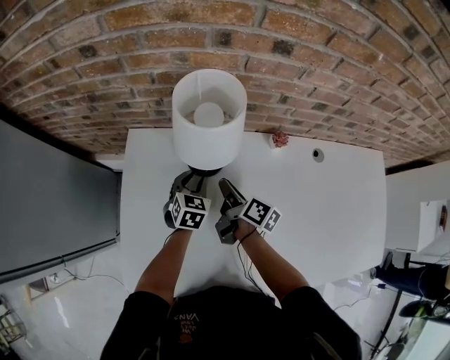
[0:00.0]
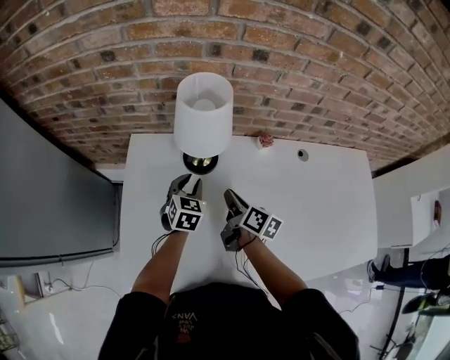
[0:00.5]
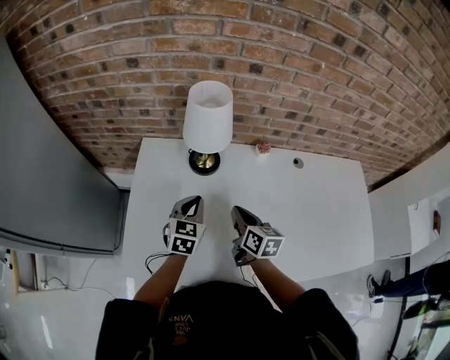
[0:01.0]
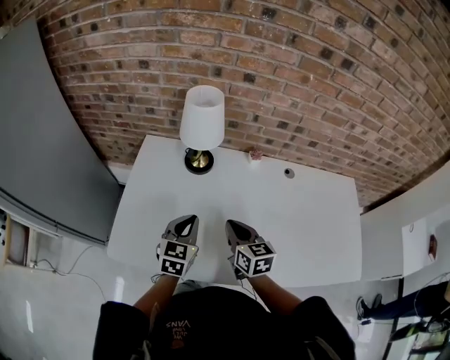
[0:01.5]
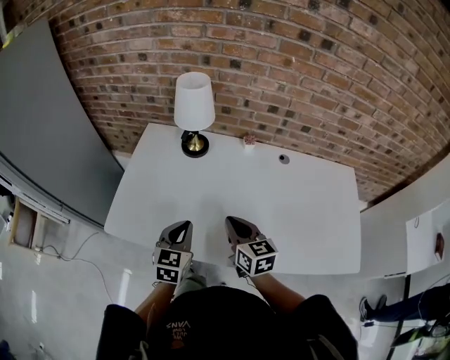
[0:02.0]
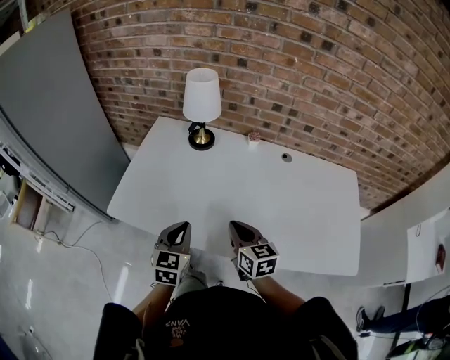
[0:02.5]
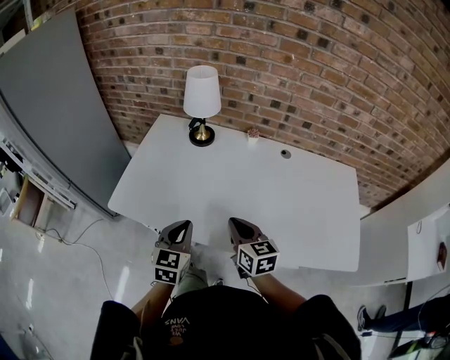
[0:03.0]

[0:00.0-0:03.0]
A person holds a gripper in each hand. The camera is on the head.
0:00.0 to 0:01.5: The left gripper ends up roughly 30 cm from where it was, and closes.
0:01.5 to 0:03.0: The left gripper ends up about 20 cm from where it was.

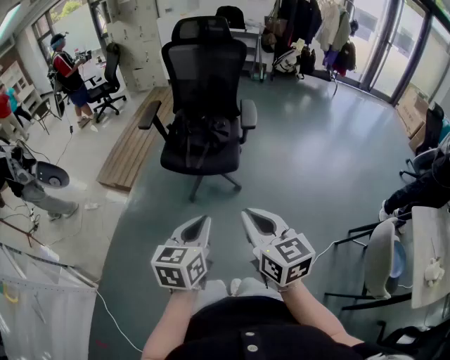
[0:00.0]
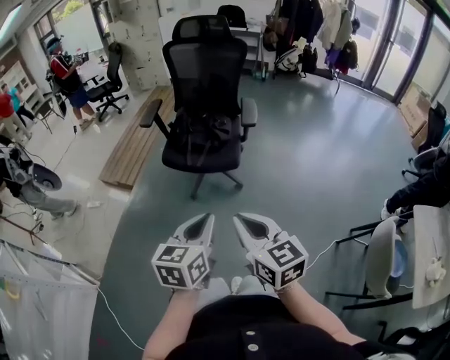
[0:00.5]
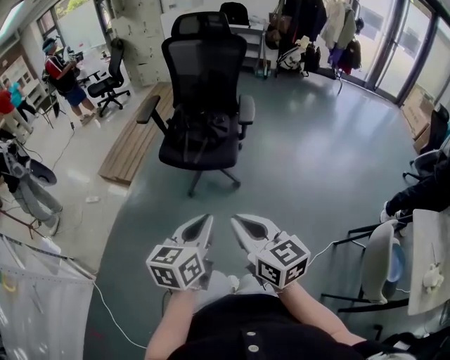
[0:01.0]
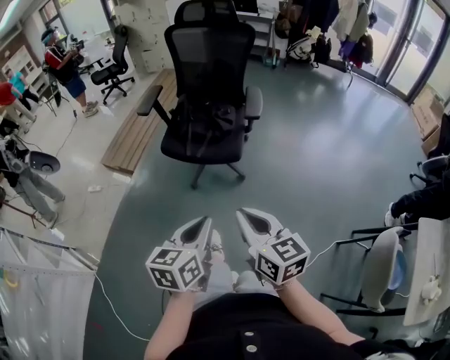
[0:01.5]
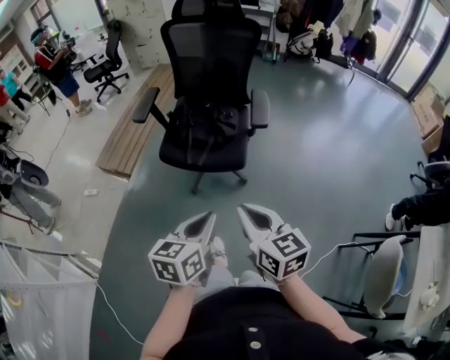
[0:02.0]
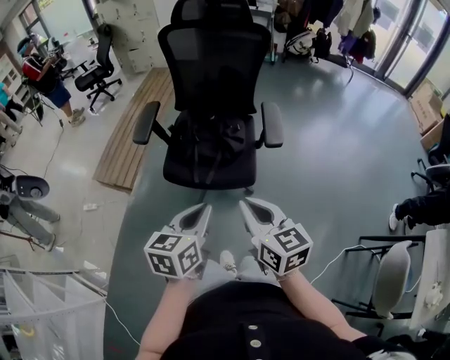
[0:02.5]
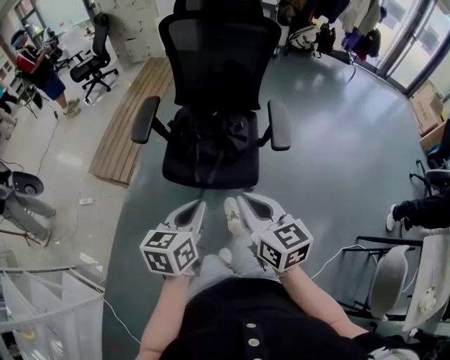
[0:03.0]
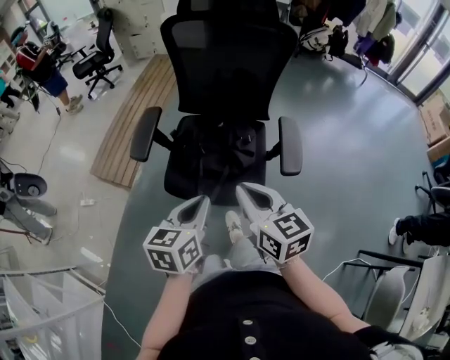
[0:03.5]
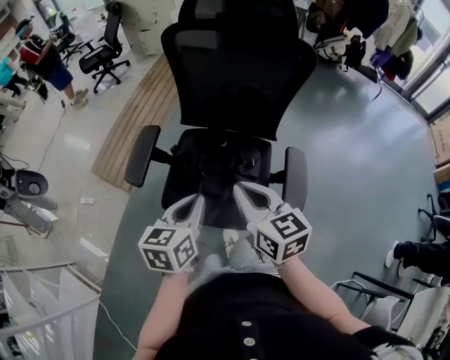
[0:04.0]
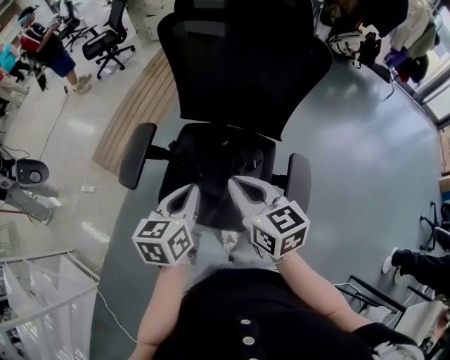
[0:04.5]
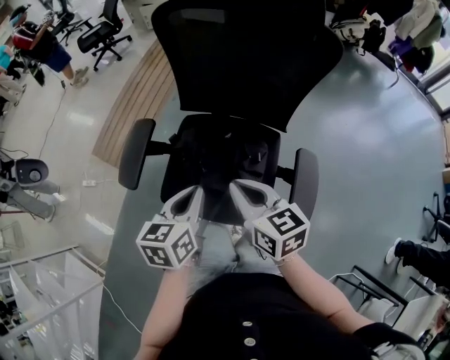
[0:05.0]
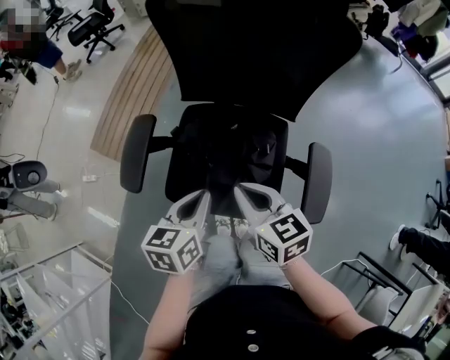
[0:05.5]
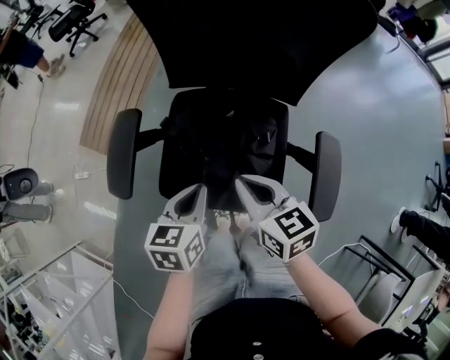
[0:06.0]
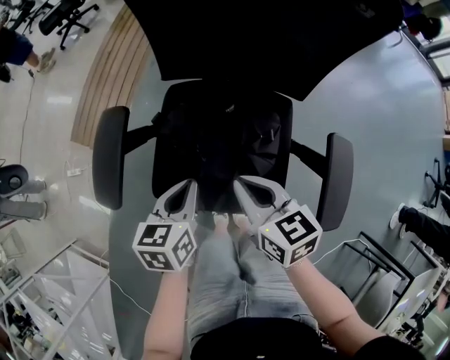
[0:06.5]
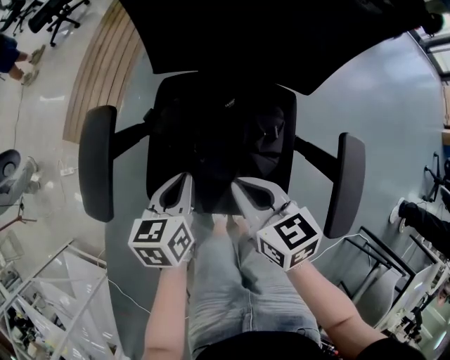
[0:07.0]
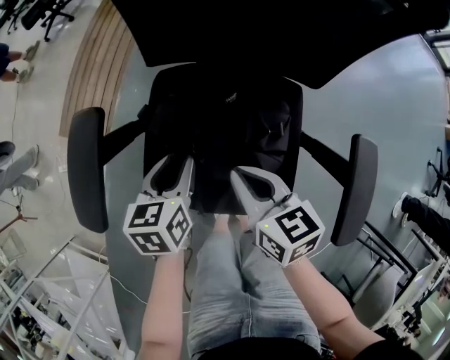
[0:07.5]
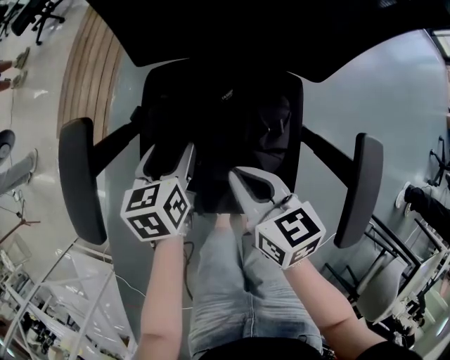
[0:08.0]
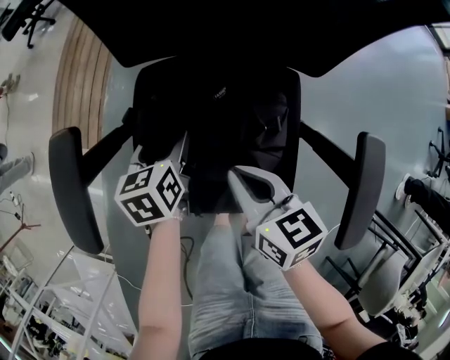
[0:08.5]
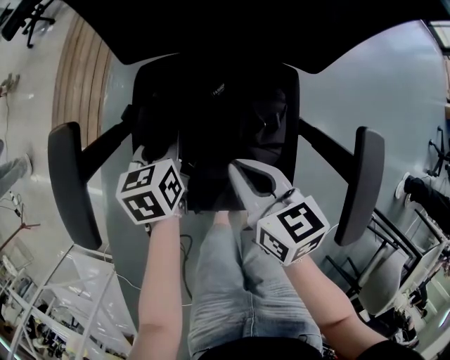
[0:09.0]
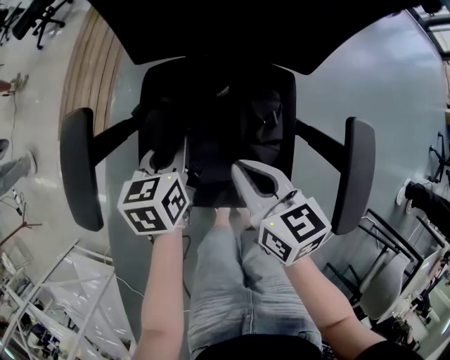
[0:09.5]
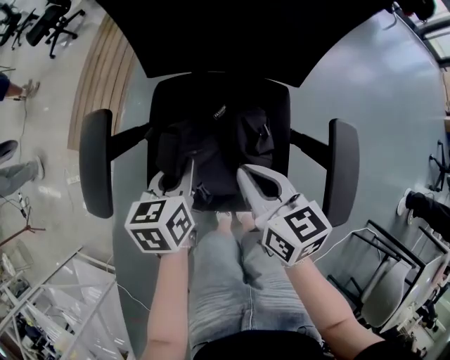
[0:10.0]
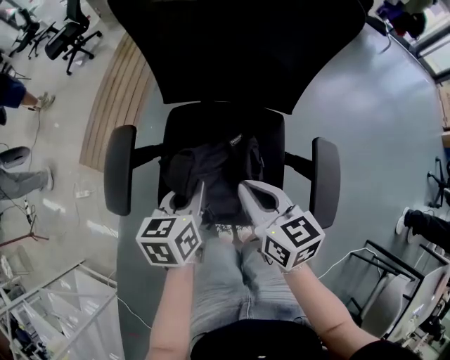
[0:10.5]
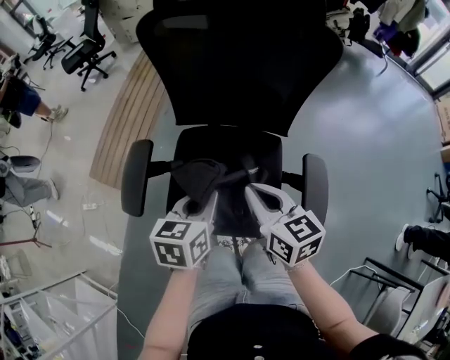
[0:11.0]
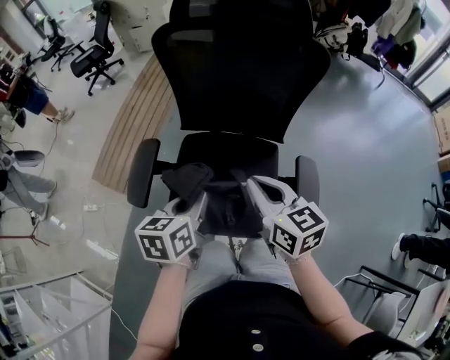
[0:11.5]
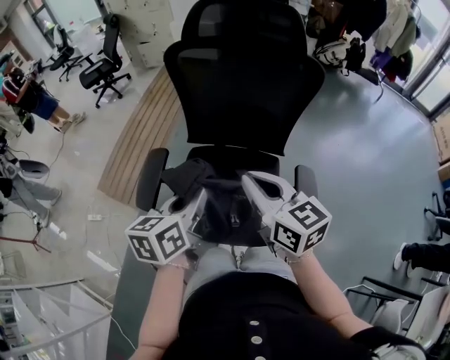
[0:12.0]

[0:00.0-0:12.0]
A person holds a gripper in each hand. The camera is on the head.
0:00.0 to 0:02.0: The right gripper travels forward and downward by some 15 cm. The left gripper shifts roughly 15 cm forward.
0:02.0 to 0:04.0: The pair of grippers is taken forward, approximately 40 cm.
0:04.0 to 0:06.0: The grippers both shift downward and forward by about 15 cm.
0:06.0 to 0:08.0: Both grippers travel together downward and forward, some 15 cm. The left gripper opens up.
0:08.0 to 0:10.0: The right gripper moves upward, some 5 cm. Meanwhile the left gripper heads upward and backward, covering about 10 cm, and closes its fingers.
0:10.0 to 0:12.0: Both grippers travel together upward, roughly 25 cm. The right gripper changes its angle by roughly 20 degrees.

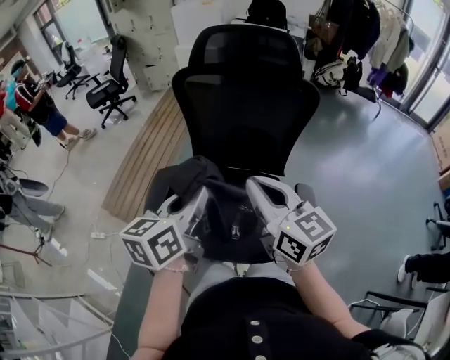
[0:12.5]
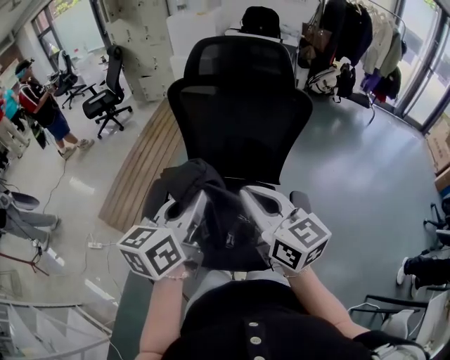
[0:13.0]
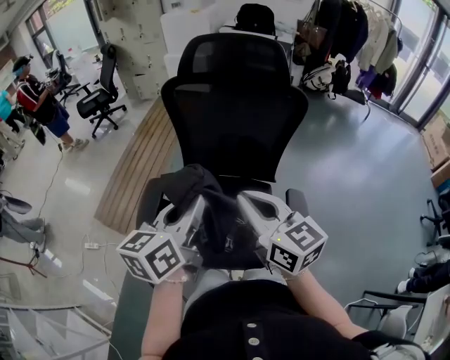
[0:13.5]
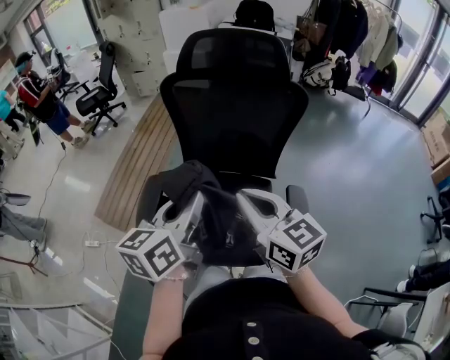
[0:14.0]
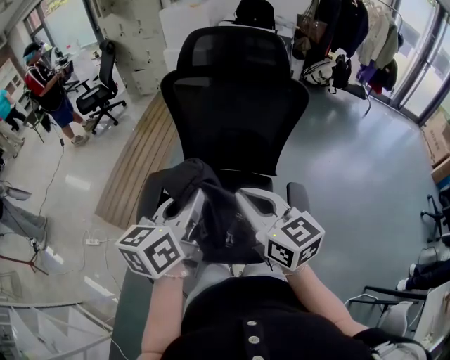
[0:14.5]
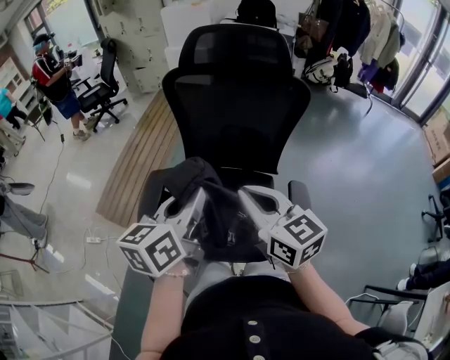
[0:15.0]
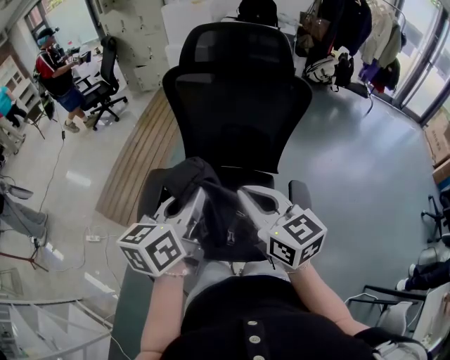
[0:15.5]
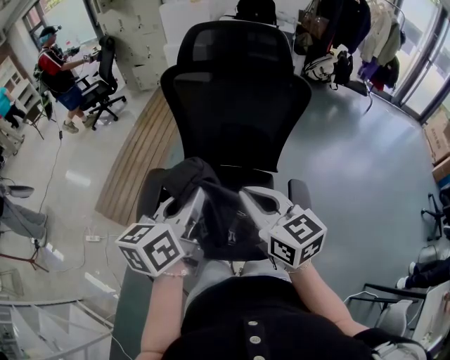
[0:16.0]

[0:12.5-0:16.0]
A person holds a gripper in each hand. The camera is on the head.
0:12.5 to 0:16.0: There are only small adjustments of the grippers.

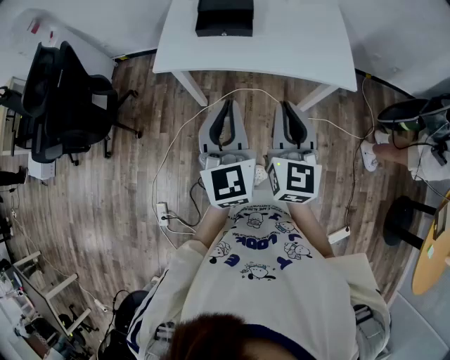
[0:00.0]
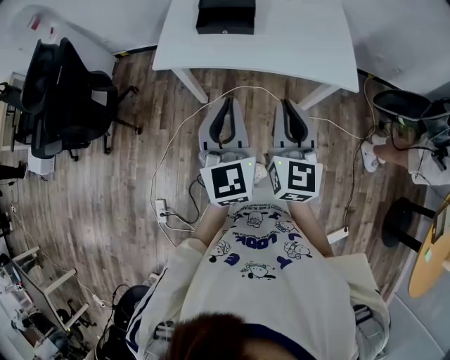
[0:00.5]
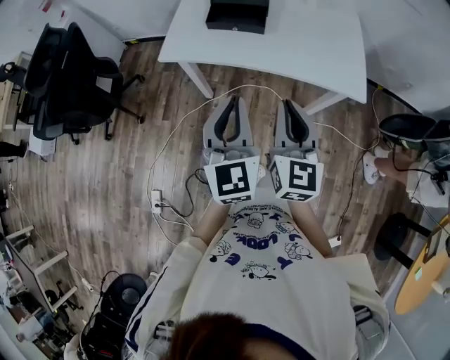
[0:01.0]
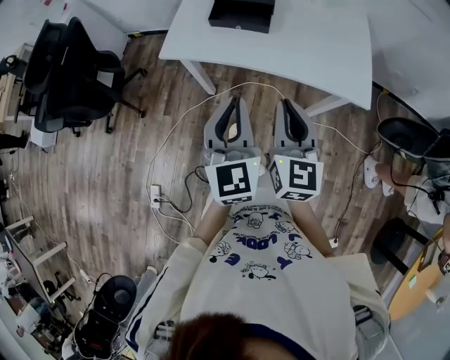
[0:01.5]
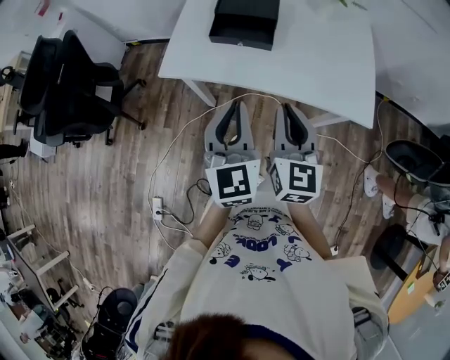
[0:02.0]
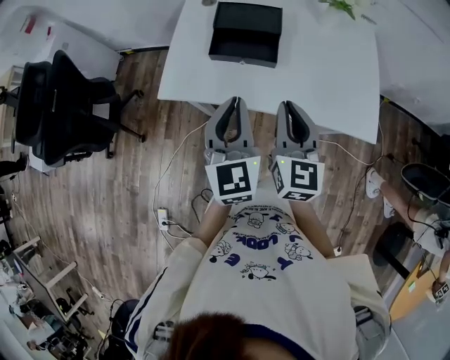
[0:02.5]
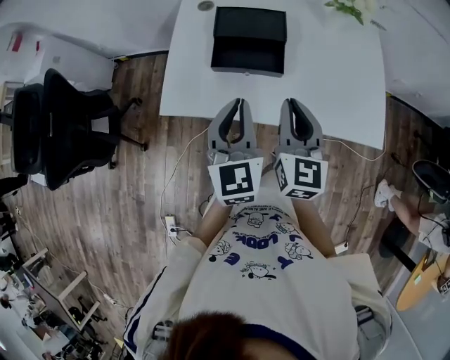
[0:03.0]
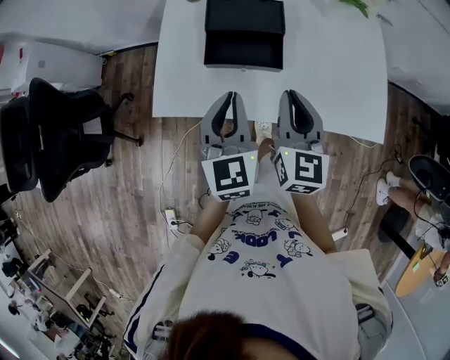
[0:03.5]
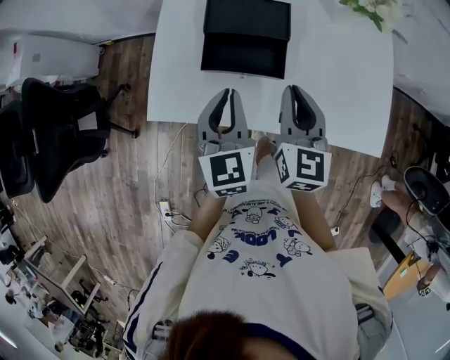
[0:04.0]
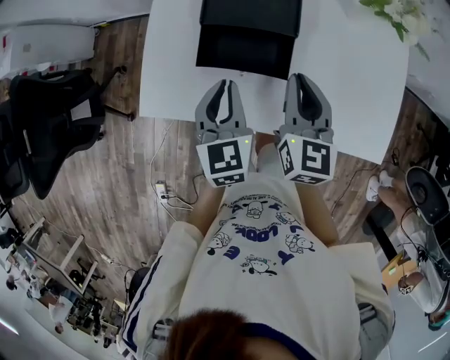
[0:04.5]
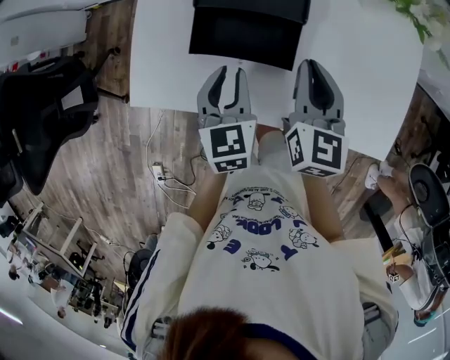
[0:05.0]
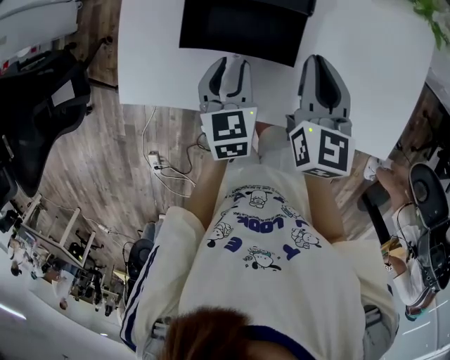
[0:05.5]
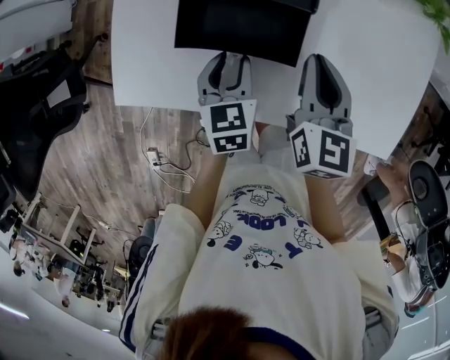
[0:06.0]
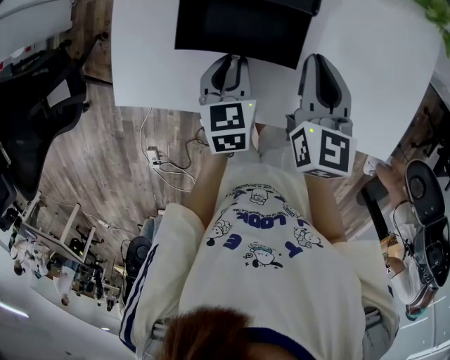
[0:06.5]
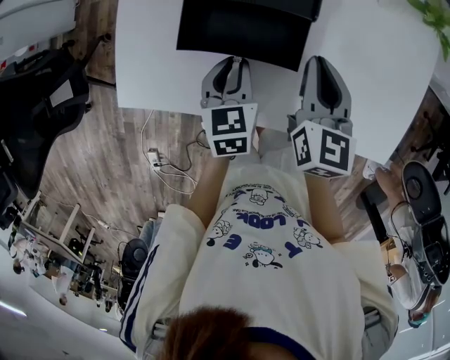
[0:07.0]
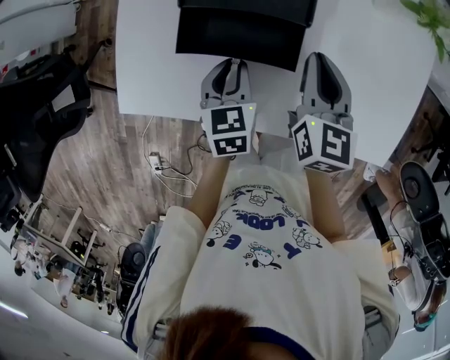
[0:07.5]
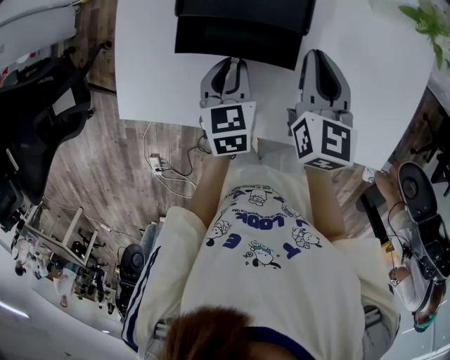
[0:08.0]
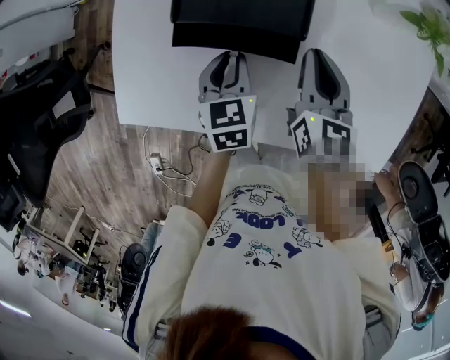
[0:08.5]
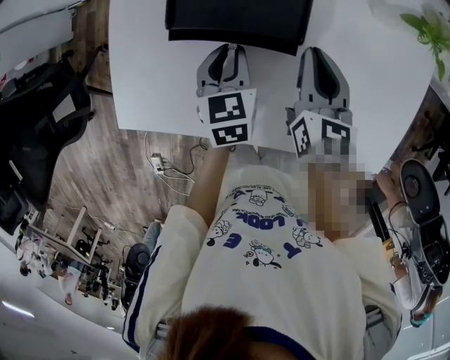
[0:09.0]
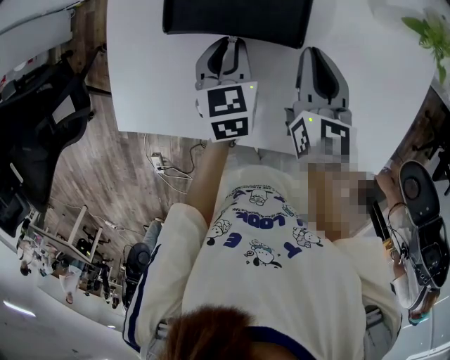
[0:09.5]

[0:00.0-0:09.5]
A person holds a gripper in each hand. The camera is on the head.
0:00.0 to 0:02.0: The grippers both shift forward by about 10 cm.
0:02.0 to 0:04.0: The grippers both shift forward by roughly 25 cm.
0:04.0 to 0:05.5: The left gripper is displaced downward by some 15 cm, rotates some 20 degrees, and opens its fingers; the right gripper shifts about 10 cm downward and forward.
0:05.5 to 0:07.5: There are only small adjustments of the grippers.
0:07.5 to 0:09.5: The left gripper moves forward, about 10 cm. The right gripper moves forward, some 5 cm.
